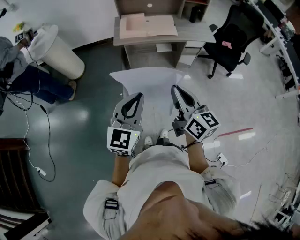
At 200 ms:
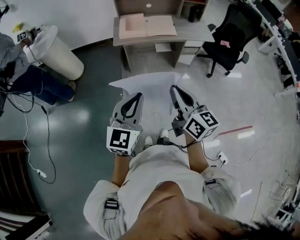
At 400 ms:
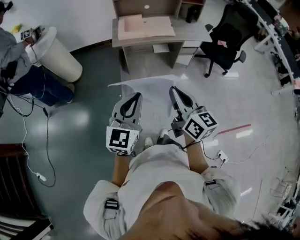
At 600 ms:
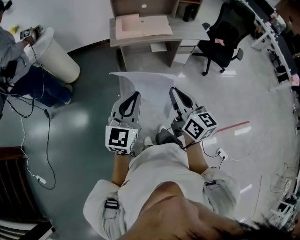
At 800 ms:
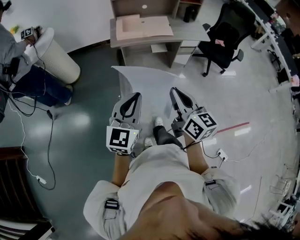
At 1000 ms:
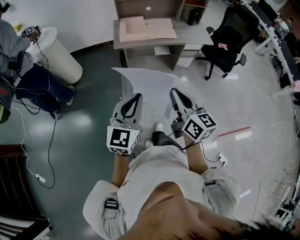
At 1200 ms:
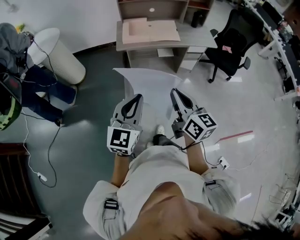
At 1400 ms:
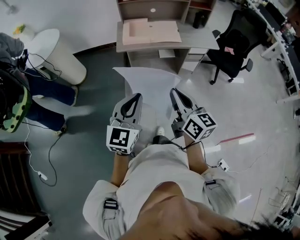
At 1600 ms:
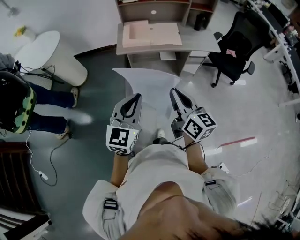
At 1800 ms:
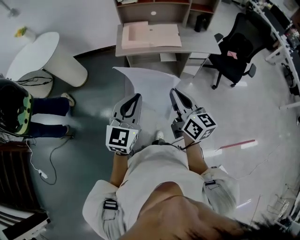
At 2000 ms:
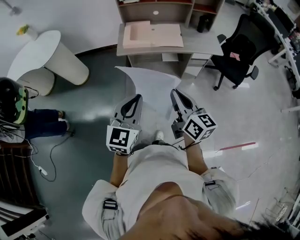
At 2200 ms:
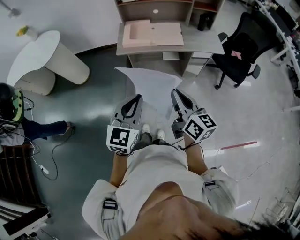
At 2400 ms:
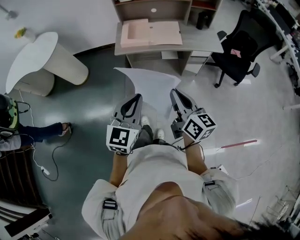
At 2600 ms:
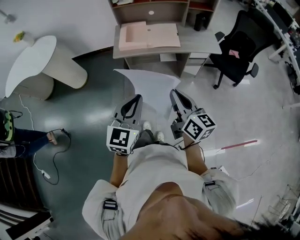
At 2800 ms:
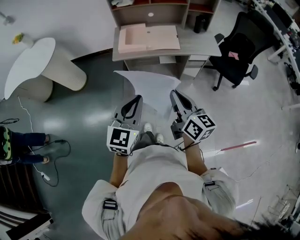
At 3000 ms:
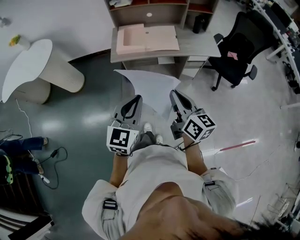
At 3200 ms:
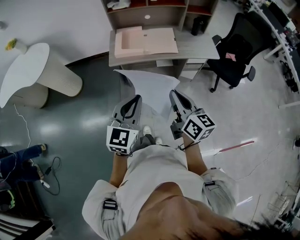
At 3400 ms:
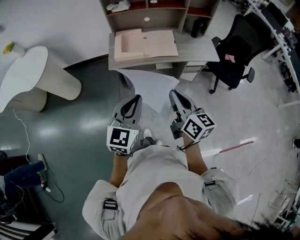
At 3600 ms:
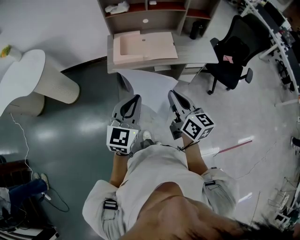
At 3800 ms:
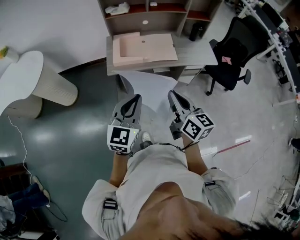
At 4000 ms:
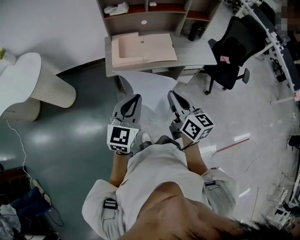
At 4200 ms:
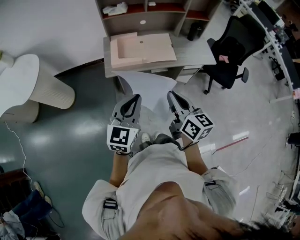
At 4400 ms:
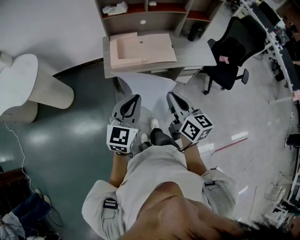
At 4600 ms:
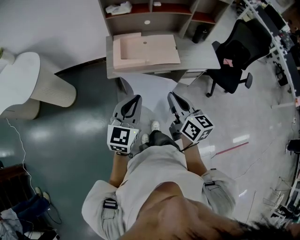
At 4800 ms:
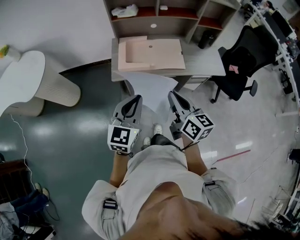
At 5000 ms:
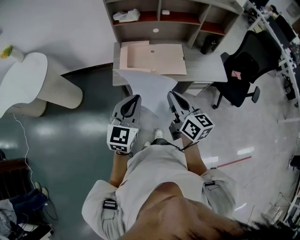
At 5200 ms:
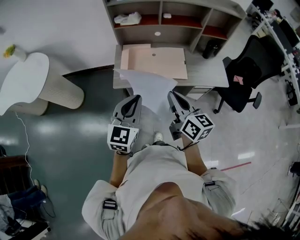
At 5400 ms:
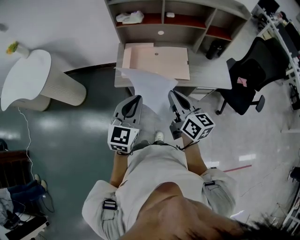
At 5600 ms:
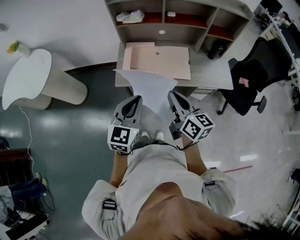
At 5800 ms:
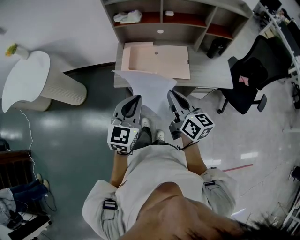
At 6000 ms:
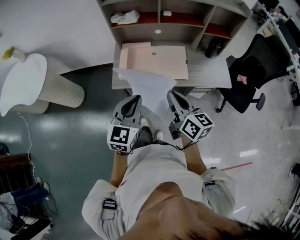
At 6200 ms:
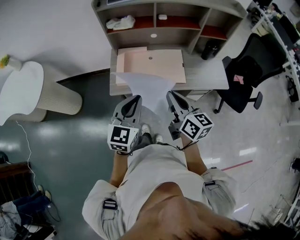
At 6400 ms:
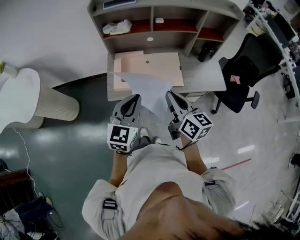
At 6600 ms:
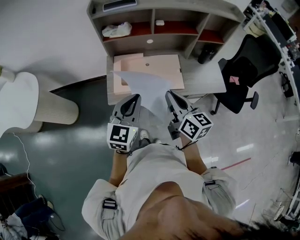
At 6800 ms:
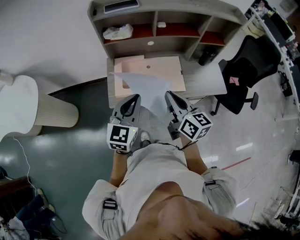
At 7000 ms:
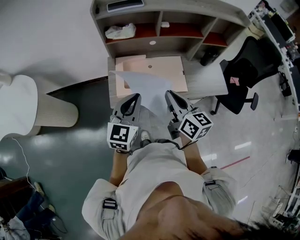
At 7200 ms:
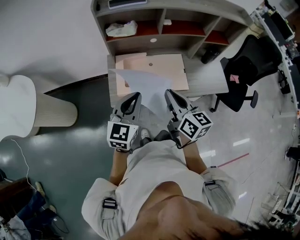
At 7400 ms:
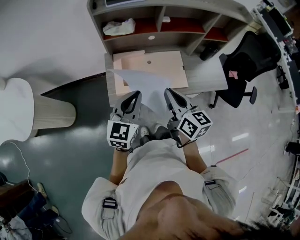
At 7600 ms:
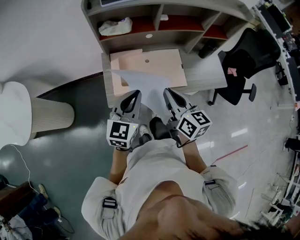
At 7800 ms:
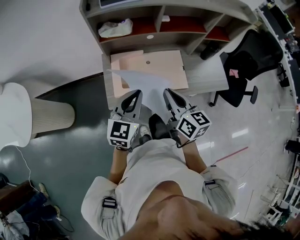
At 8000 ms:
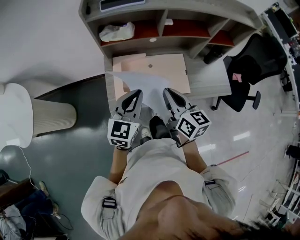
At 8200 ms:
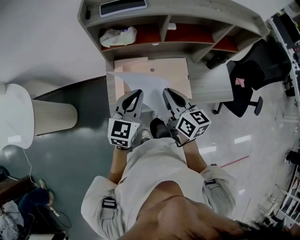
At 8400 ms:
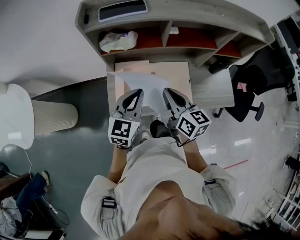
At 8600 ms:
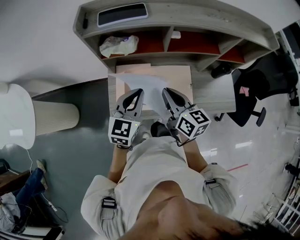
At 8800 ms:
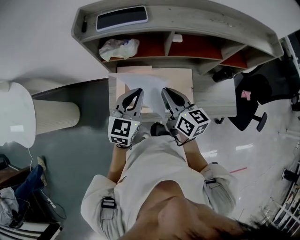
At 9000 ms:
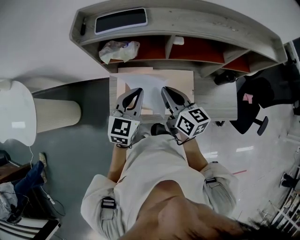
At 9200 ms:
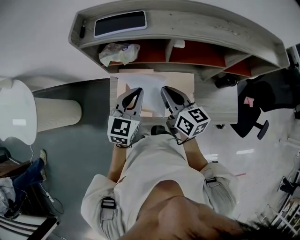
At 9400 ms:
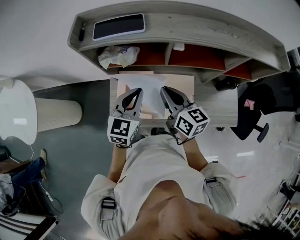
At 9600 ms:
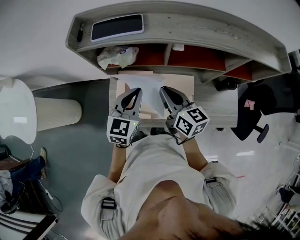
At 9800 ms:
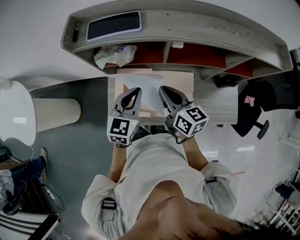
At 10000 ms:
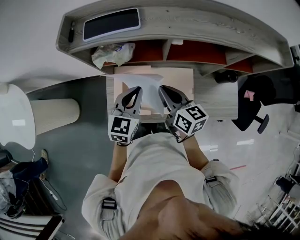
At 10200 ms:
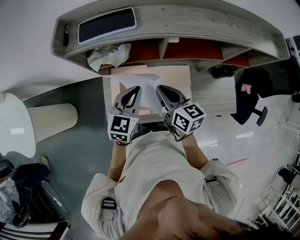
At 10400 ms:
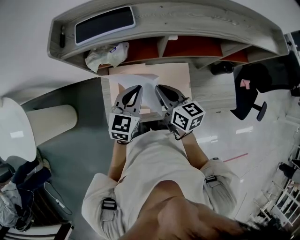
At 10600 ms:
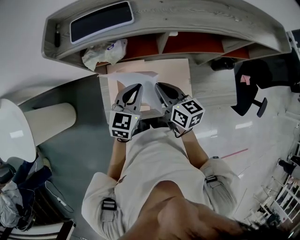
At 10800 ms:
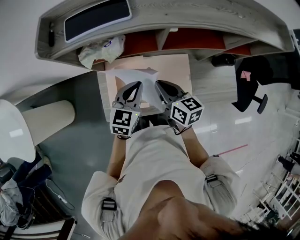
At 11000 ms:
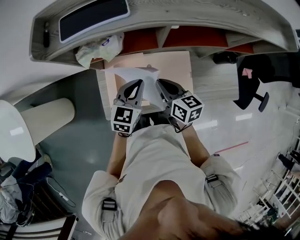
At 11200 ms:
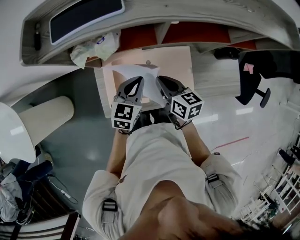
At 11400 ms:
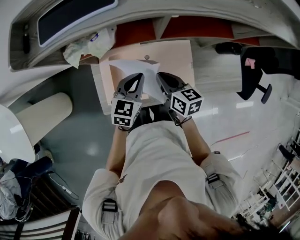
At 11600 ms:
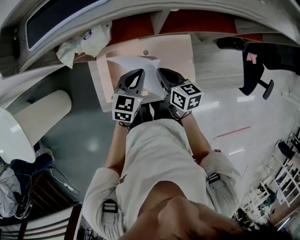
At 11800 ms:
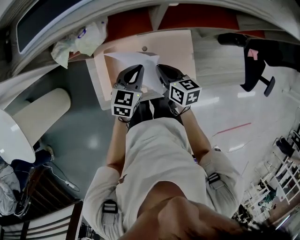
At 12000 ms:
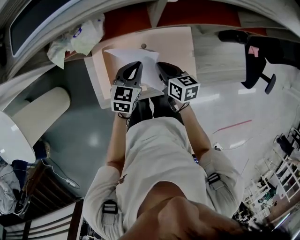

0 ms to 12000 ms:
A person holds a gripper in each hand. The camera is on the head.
0 ms to 1600 ms: Both grippers move forward, some 10 cm.
1600 ms to 3000 ms: The two grippers go roughly 10 cm forward and to the right.
3000 ms to 4400 ms: Both grippers travel together forward and to the left, about 15 cm.
4400 ms to 6000 ms: Both grippers move forward, approximately 15 cm.
6000 ms to 7600 ms: The two grippers go some 15 cm forward and to the left.
7600 ms to 9000 ms: Both grippers travel together forward, some 20 cm.
9000 ms to 10400 ms: The left gripper changes place by roughly 5 cm; the right gripper shifts by approximately 5 cm.
10400 ms to 12000 ms: The grippers both shift downward by some 20 cm.

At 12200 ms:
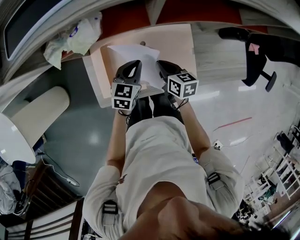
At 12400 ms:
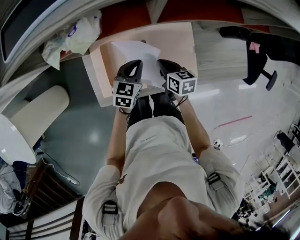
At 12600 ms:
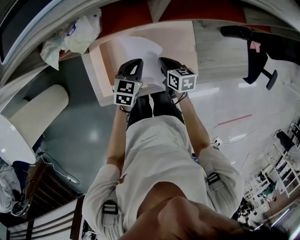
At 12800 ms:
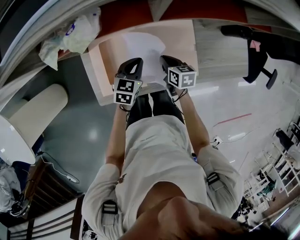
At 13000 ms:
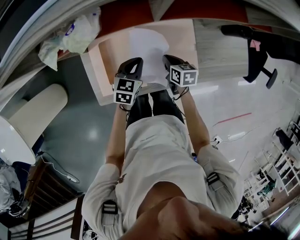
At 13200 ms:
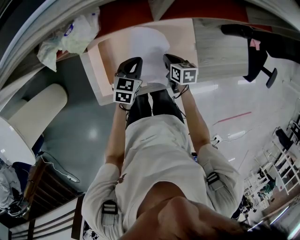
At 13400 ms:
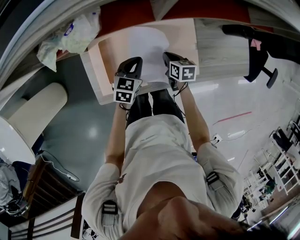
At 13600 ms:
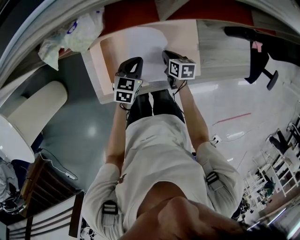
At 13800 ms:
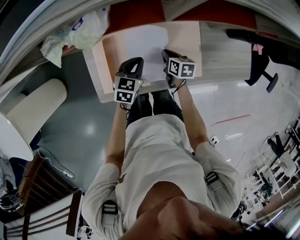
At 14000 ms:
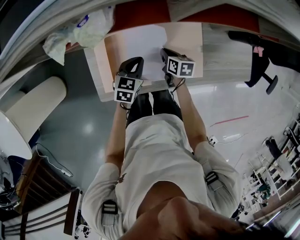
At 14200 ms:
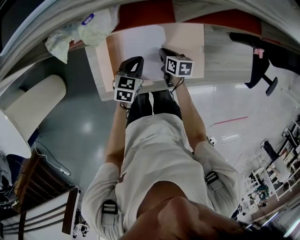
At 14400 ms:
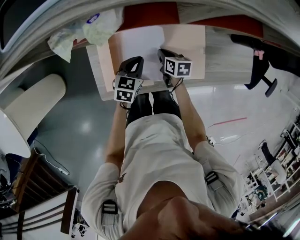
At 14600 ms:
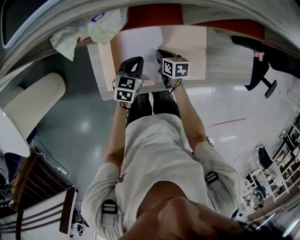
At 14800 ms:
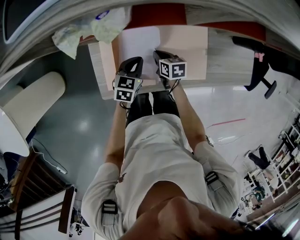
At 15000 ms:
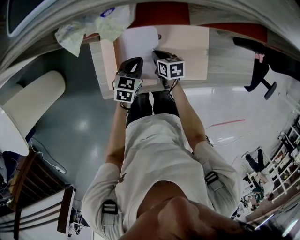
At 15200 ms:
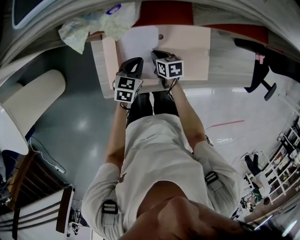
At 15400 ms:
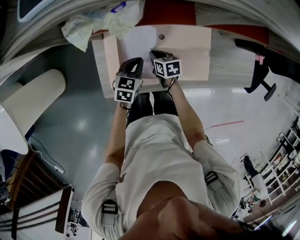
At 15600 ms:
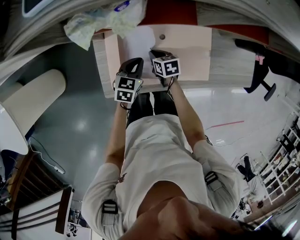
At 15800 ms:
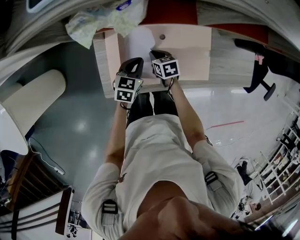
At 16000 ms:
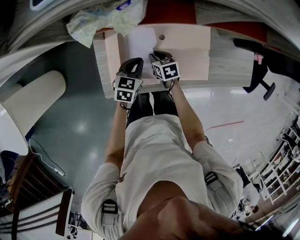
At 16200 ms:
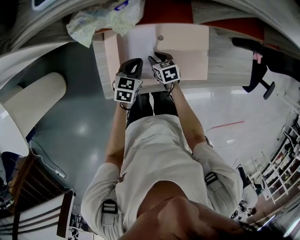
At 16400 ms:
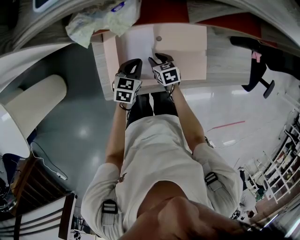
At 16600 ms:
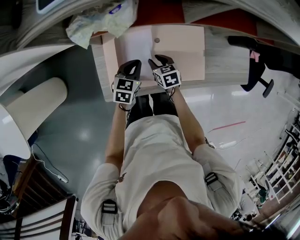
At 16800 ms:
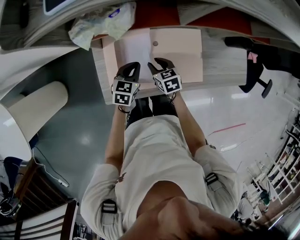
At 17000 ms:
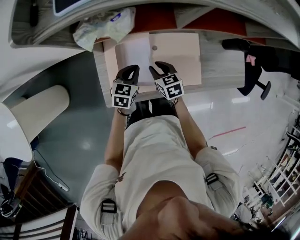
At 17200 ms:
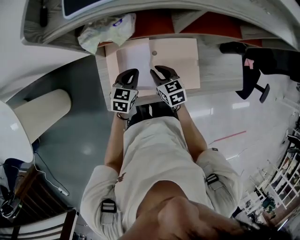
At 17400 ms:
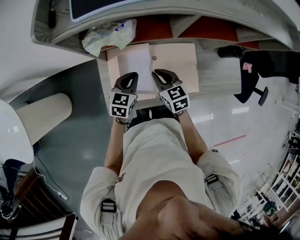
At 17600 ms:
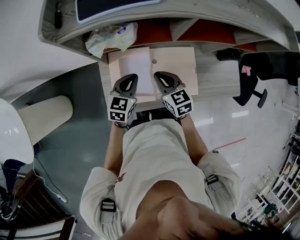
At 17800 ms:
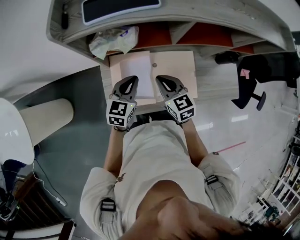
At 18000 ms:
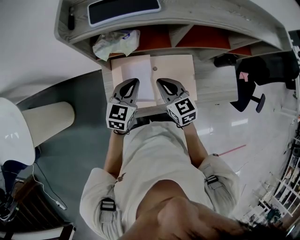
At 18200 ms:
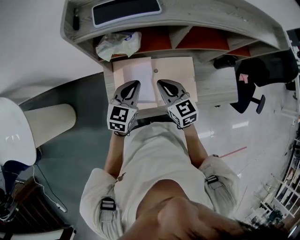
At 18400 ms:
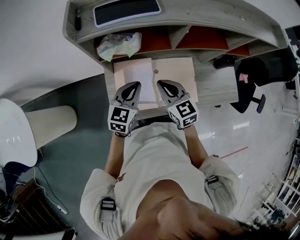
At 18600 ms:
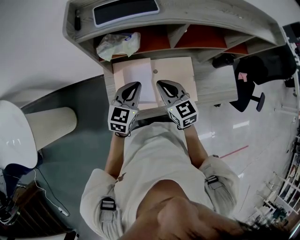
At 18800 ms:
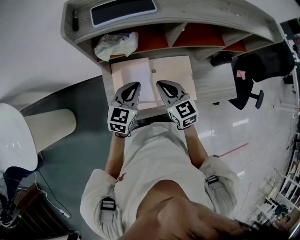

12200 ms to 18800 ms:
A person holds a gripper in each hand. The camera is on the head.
12200 ms to 13800 ms: The right gripper moves downward, about 10 cm, while the left gripper heads downward, covering roughly 5 cm.
13800 ms to 15400 ms: The right gripper moves to the left, roughly 10 cm. Meanwhile the left gripper shifts about 5 cm to the left.
15400 ms to 17200 ms: The right gripper is displaced upward by some 15 cm, and turns by approximately 20 degrees. Meanwhile the left gripper goes about 10 cm upward.
17200 ms to 18800 ms: The grippers both shift upward by about 15 cm. The right gripper turns by approximately 20 degrees.

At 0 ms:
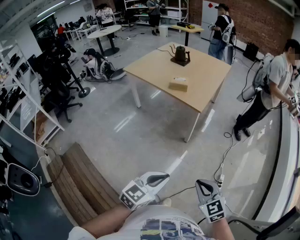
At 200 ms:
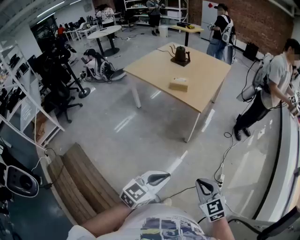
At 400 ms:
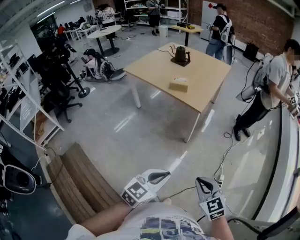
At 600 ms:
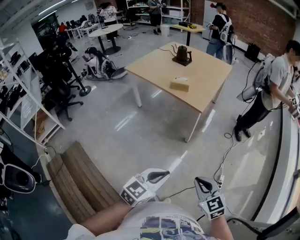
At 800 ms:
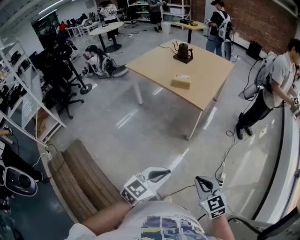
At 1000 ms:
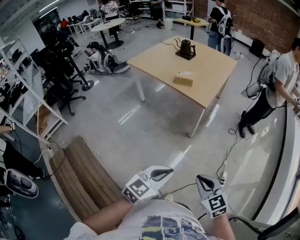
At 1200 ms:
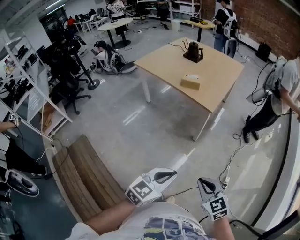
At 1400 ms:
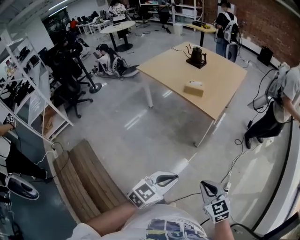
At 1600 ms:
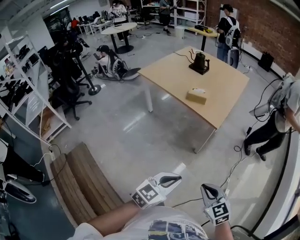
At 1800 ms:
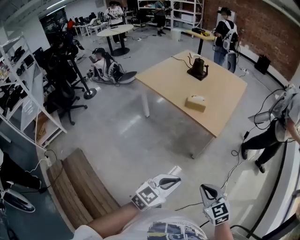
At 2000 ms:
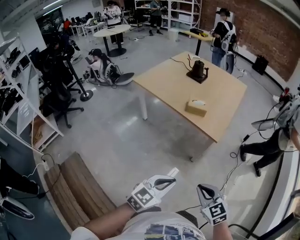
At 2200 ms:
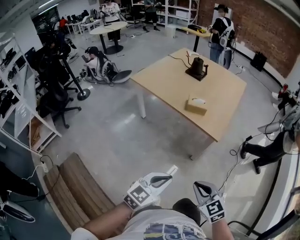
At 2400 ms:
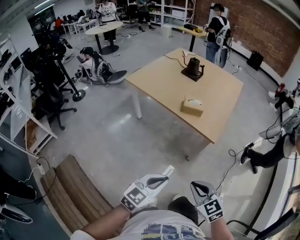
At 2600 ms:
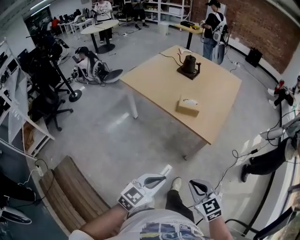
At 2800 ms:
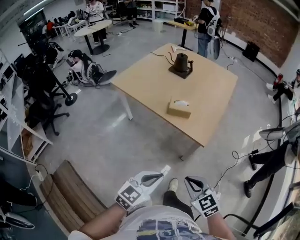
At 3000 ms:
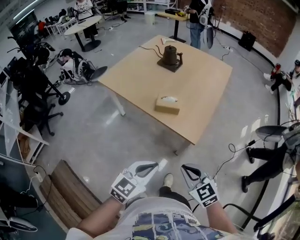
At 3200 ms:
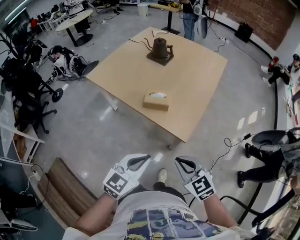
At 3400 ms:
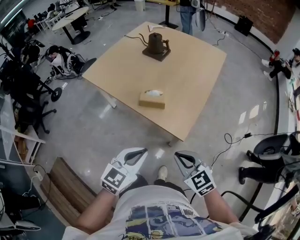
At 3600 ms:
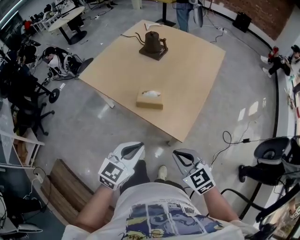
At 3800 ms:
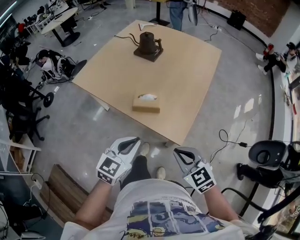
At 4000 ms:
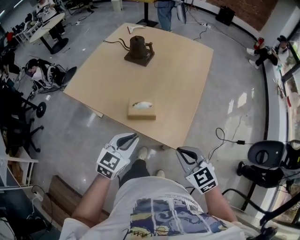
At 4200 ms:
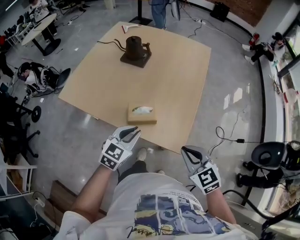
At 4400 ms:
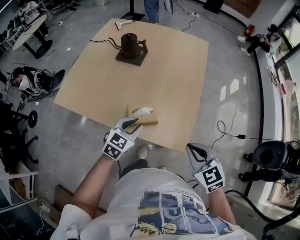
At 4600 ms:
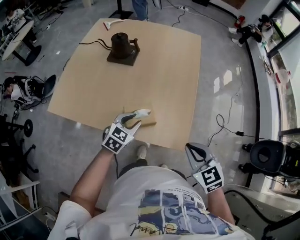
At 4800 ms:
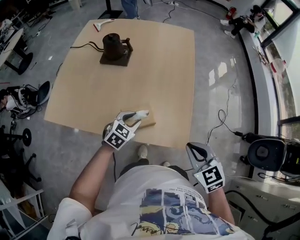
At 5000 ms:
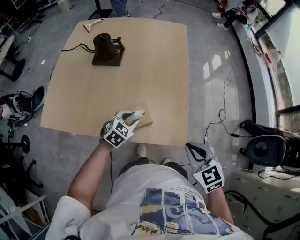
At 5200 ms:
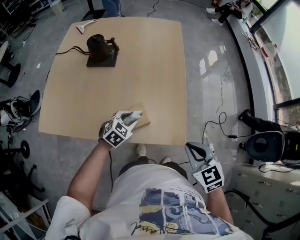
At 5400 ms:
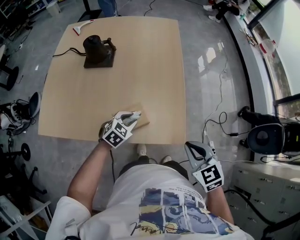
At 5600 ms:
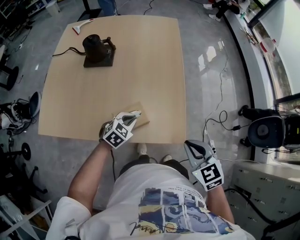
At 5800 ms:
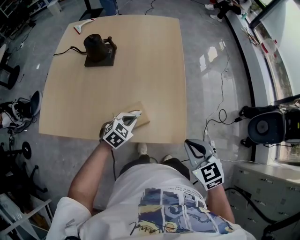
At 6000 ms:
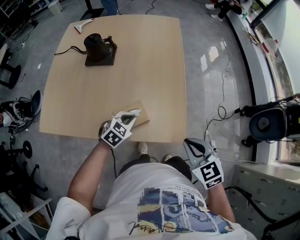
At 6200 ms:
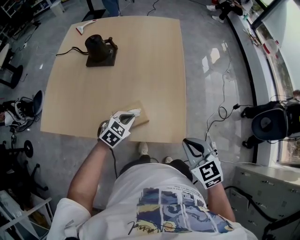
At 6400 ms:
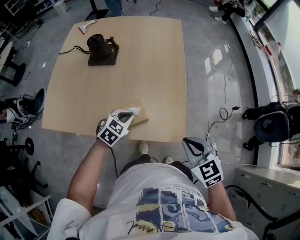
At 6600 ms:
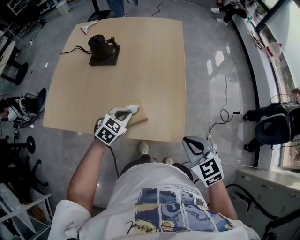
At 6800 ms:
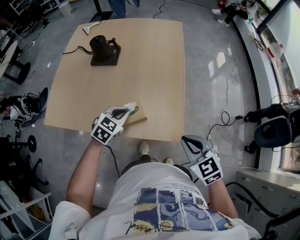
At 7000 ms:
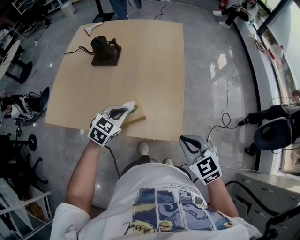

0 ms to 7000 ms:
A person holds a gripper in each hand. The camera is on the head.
0 ms to 1400 ms: The two grippers go approximately 5 cm forward.
1400 ms to 2800 ms: The grippers both shift forward by about 25 cm.
2800 ms to 4200 ms: The two grippers go roughly 35 cm forward.
4200 ms to 5600 ms: The left gripper is displaced downward by some 15 cm, turns by roughly 40 degrees, and opens, then closes again. Meanwhile the right gripper rotates about 20 degrees.
5600 ms to 7000 ms: The left gripper shifts approximately 10 cm upward.
